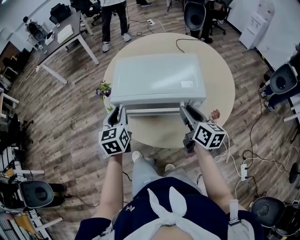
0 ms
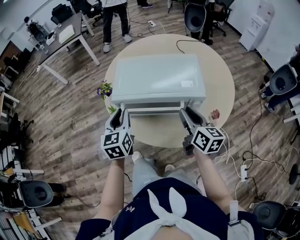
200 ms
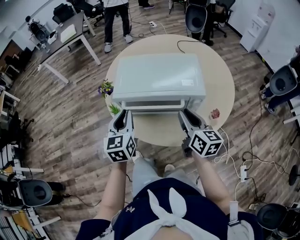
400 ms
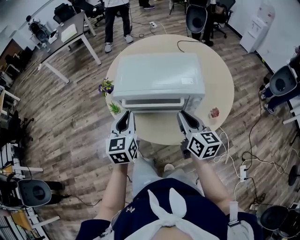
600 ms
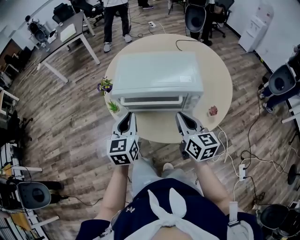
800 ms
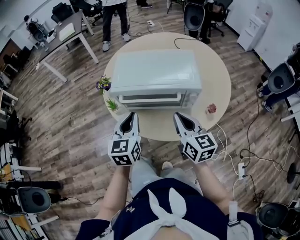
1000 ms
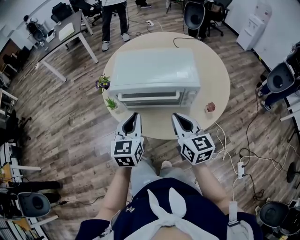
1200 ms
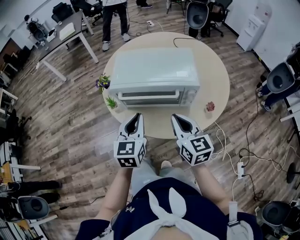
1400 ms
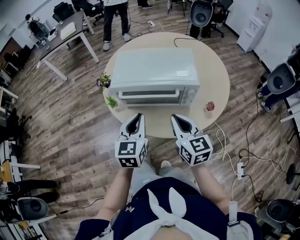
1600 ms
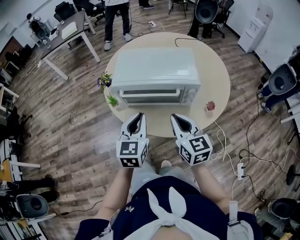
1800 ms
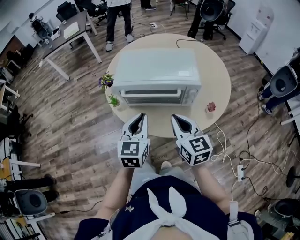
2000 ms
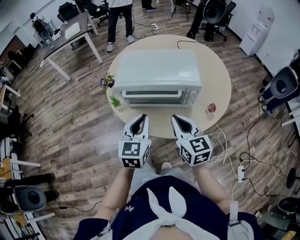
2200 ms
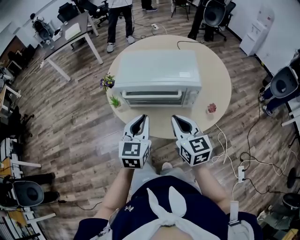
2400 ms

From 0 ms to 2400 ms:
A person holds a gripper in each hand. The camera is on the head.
From 0 ms to 1200 ms: The right gripper heads backward and to the left, covering roughly 10 cm, swivels some 20 degrees, and closes. Meanwhile the left gripper goes some 15 cm backward and to the right.
From 1200 ms to 2400 ms: The grippers stay close to where they were, moving slightly.

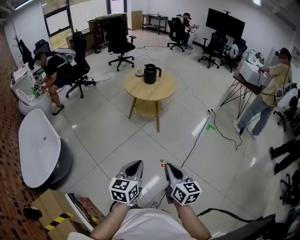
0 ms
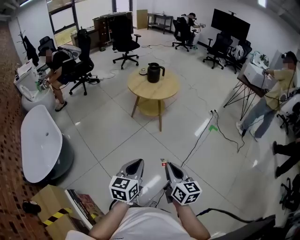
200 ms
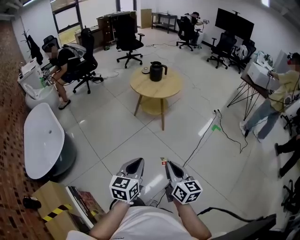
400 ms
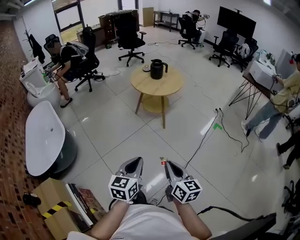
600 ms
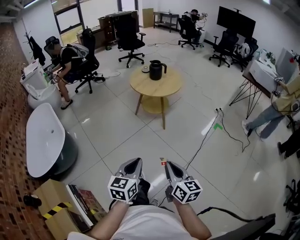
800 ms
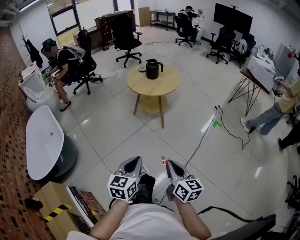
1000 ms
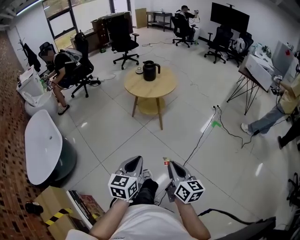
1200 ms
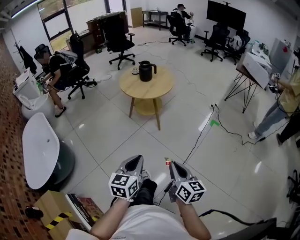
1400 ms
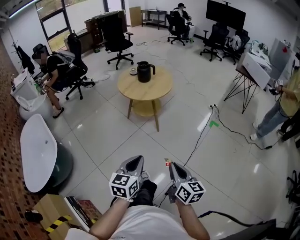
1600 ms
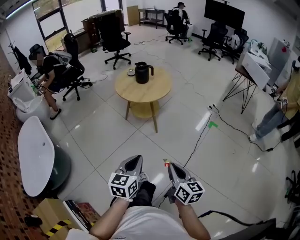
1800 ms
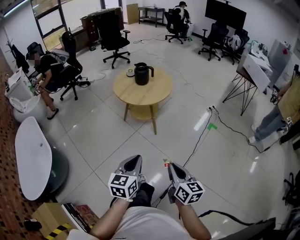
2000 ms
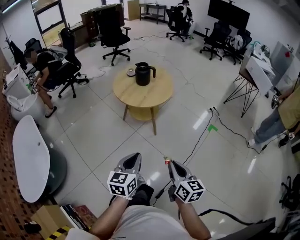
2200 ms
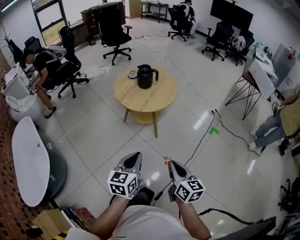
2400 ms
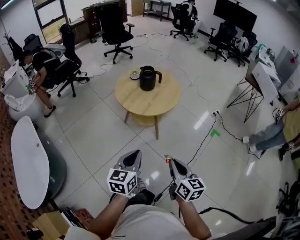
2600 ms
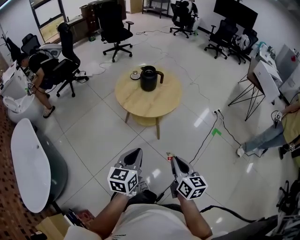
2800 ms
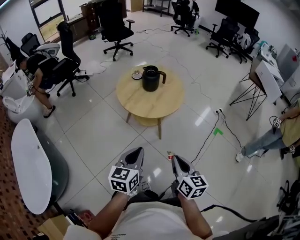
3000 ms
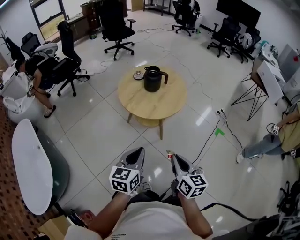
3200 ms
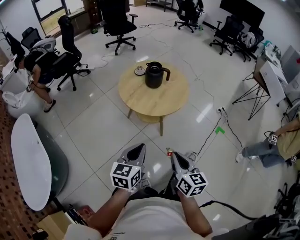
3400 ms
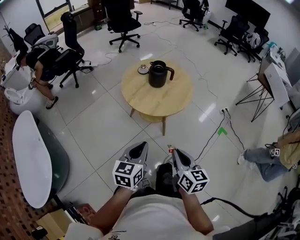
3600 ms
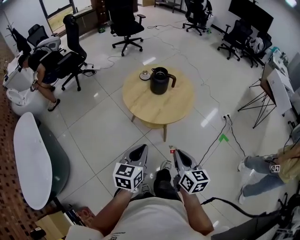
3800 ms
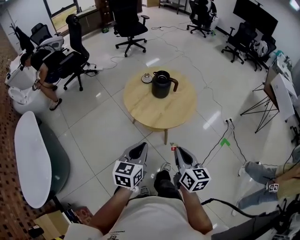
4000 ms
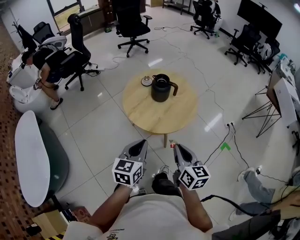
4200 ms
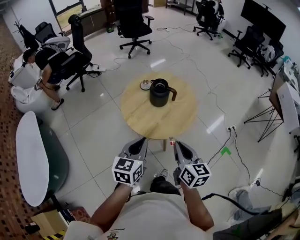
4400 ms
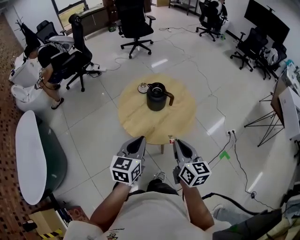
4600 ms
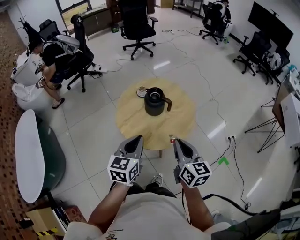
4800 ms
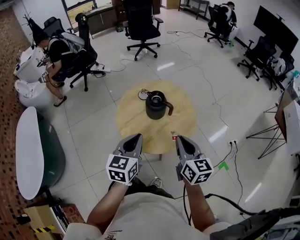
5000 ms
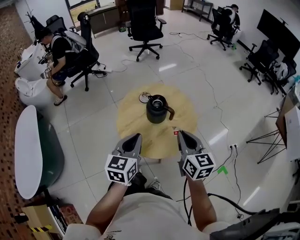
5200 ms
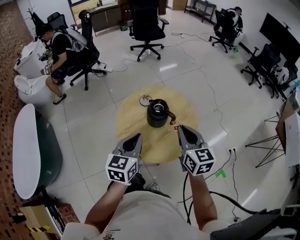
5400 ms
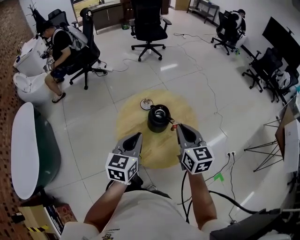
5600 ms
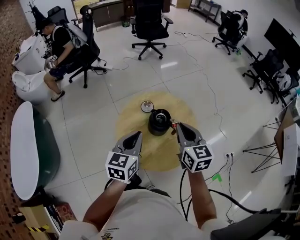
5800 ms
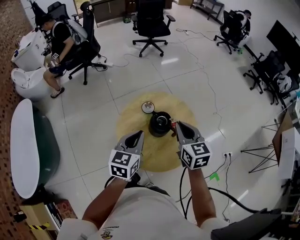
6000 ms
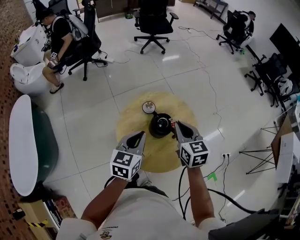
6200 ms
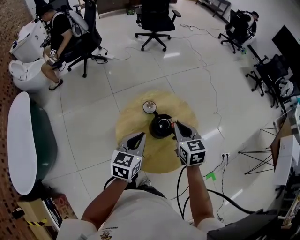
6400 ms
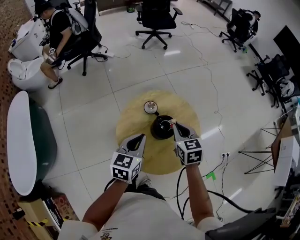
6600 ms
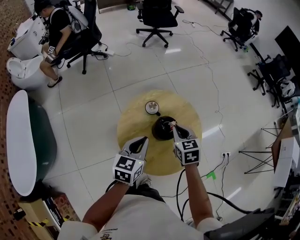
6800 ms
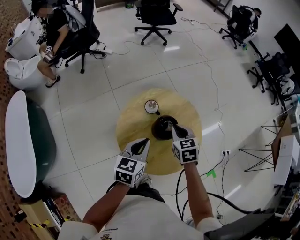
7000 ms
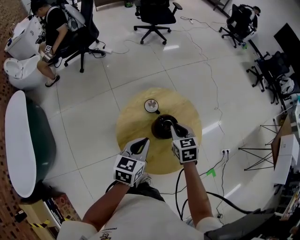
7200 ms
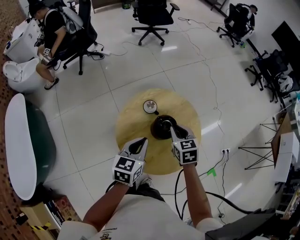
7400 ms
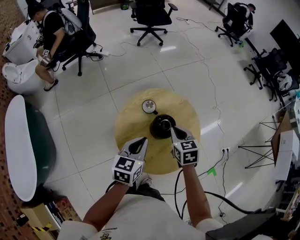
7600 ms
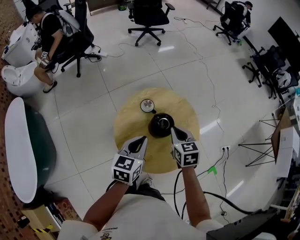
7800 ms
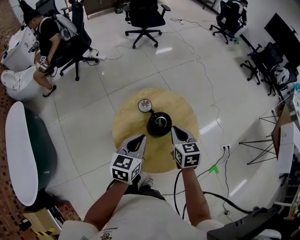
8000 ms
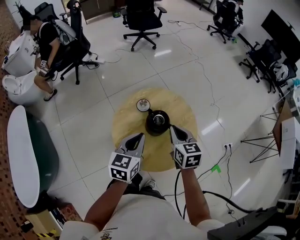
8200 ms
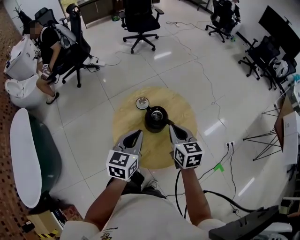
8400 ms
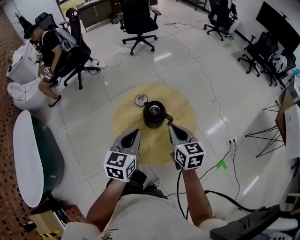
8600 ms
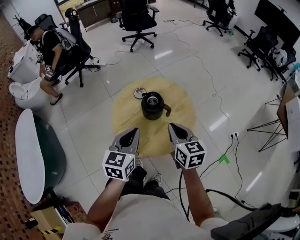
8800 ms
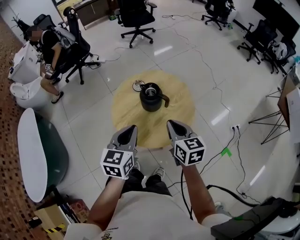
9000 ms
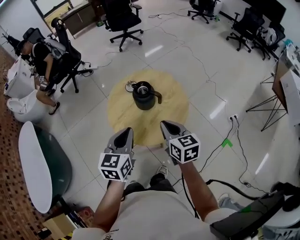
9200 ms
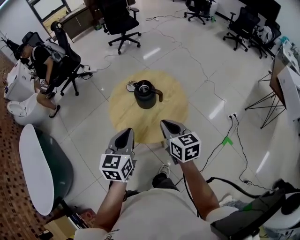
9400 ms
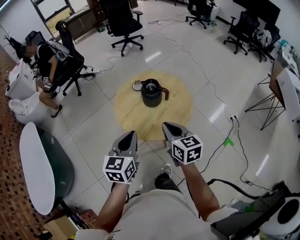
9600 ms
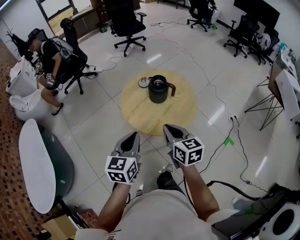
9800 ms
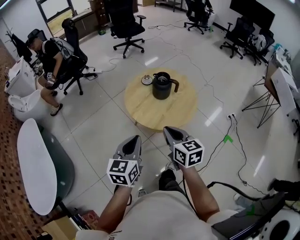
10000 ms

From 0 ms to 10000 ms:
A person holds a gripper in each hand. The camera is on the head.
From 0 ms to 1400 ms: Both grippers move to the right, roughly 10 cm.
From 1400 ms to 2800 ms: Both grippers travel together forward, roughly 30 cm.
From 2800 ms to 4200 ms: Both grippers travel together forward, approximately 20 cm.
From 4200 ms to 5800 ms: The two grippers go roughly 30 cm forward. The right gripper rotates roughly 20 degrees.
From 5800 ms to 7200 ms: The right gripper is displaced downward and forward by approximately 15 cm, and rotates approximately 30 degrees. Meanwhile the left gripper travels downward by approximately 5 cm.
From 7200 ms to 8600 ms: The right gripper is displaced backward and upward by approximately 15 cm, and turns by approximately 20 degrees. Meanwhile the left gripper travels backward and upward by approximately 5 cm.
From 8600 ms to 10000 ms: The grippers both shift backward and to the left by approximately 25 cm.

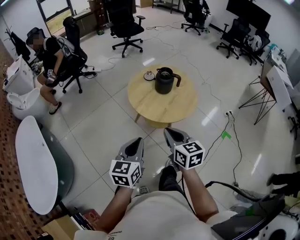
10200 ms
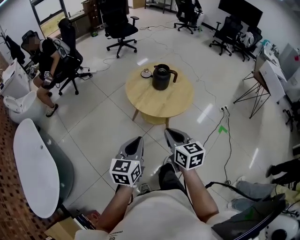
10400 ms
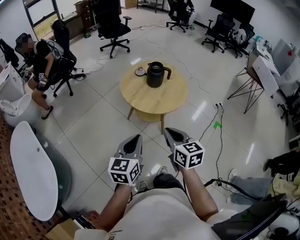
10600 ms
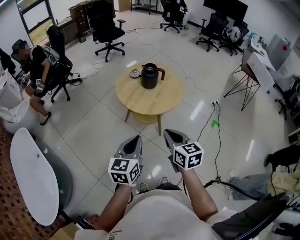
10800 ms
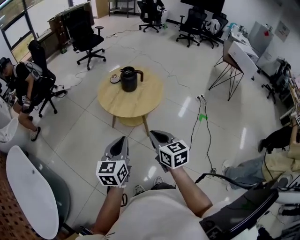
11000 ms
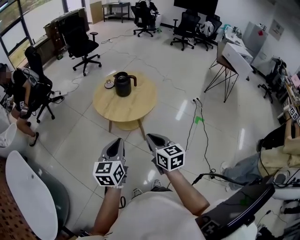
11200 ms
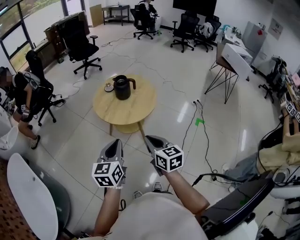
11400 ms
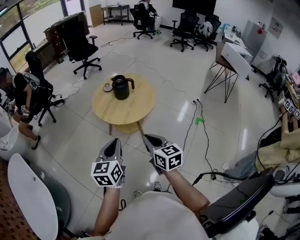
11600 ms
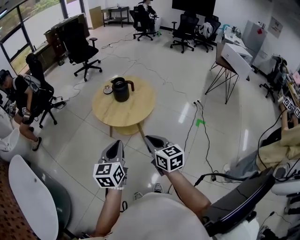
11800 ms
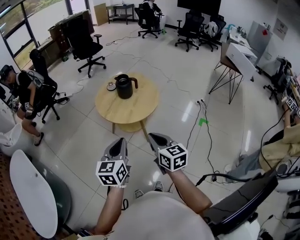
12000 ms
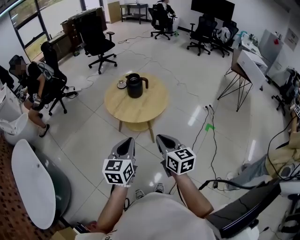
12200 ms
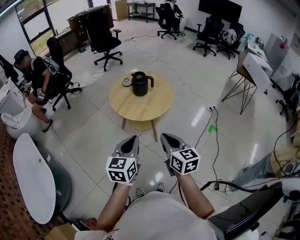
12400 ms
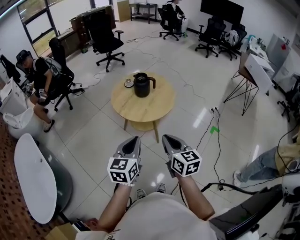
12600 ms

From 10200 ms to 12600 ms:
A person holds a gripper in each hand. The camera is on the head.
From 10200 ms to 11400 ms: The right gripper moves backward and to the right, about 10 cm. Meanwhile the left gripper is displaced to the right and backward by about 5 cm.
From 11400 ms to 12600 ms: The grippers stay close to where they were, moving slightly.

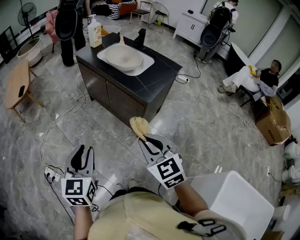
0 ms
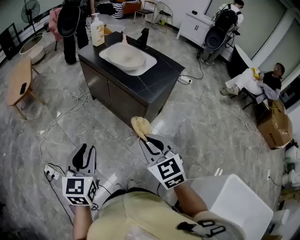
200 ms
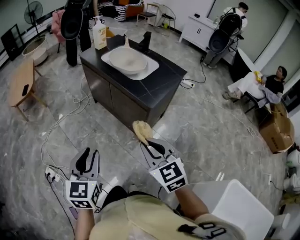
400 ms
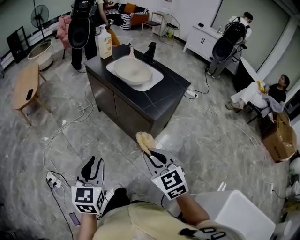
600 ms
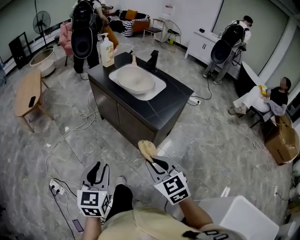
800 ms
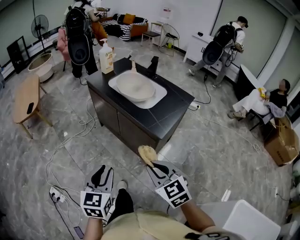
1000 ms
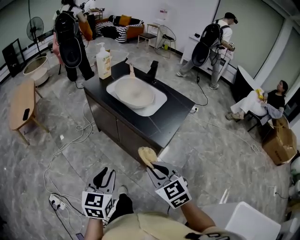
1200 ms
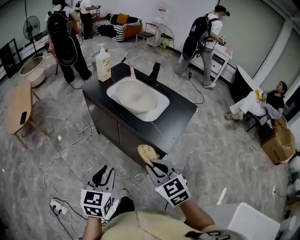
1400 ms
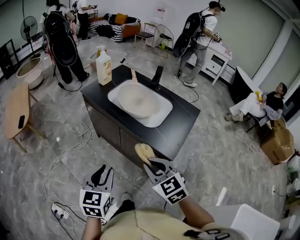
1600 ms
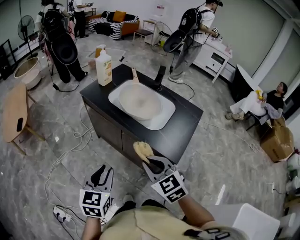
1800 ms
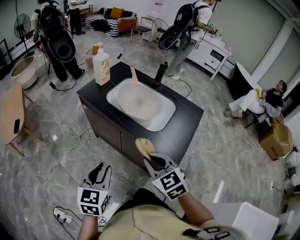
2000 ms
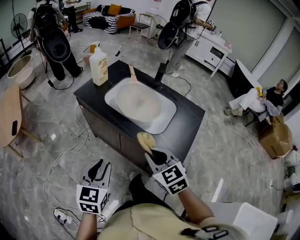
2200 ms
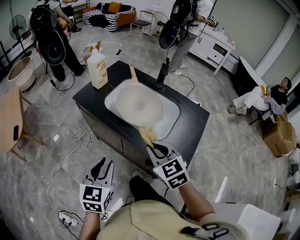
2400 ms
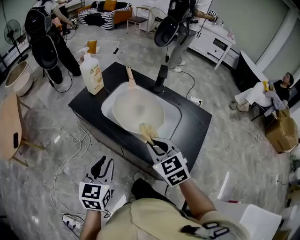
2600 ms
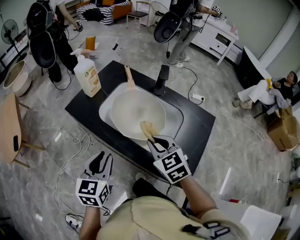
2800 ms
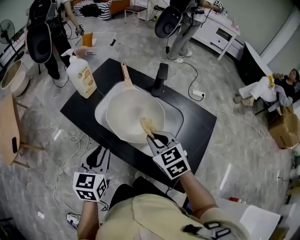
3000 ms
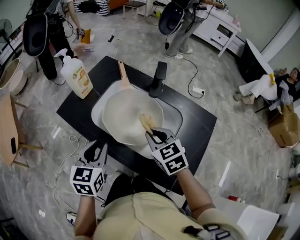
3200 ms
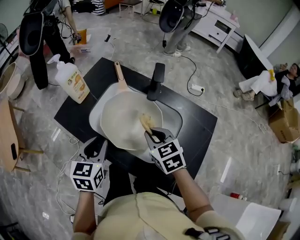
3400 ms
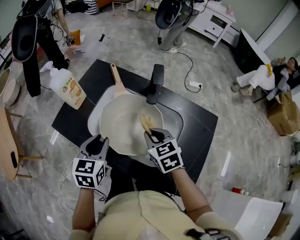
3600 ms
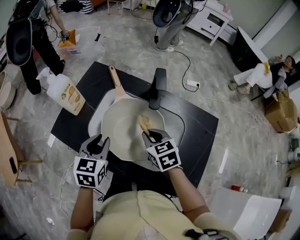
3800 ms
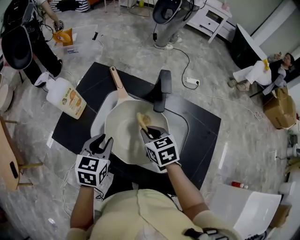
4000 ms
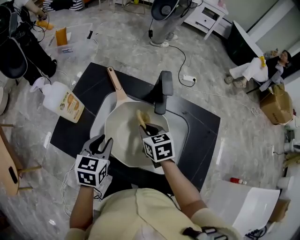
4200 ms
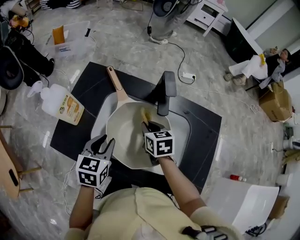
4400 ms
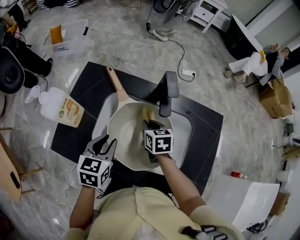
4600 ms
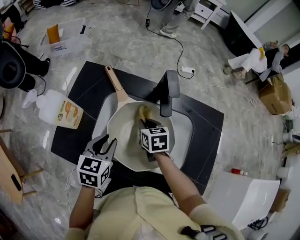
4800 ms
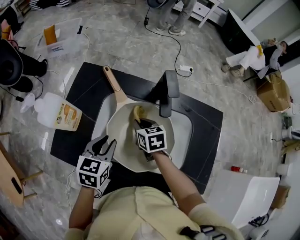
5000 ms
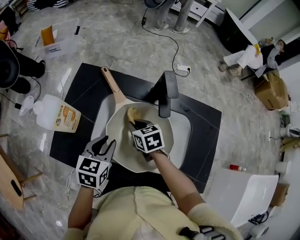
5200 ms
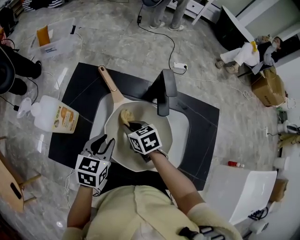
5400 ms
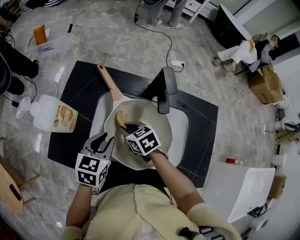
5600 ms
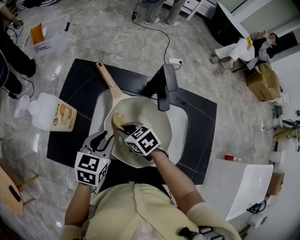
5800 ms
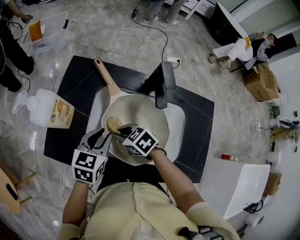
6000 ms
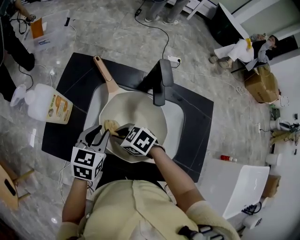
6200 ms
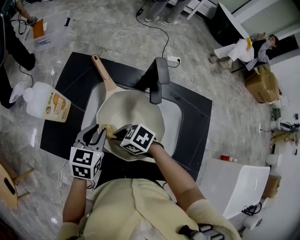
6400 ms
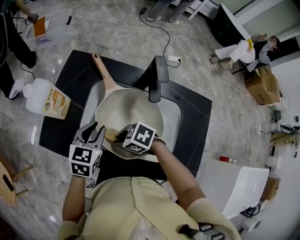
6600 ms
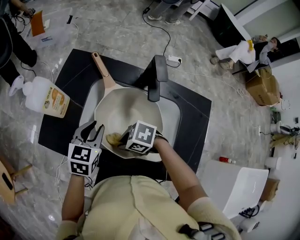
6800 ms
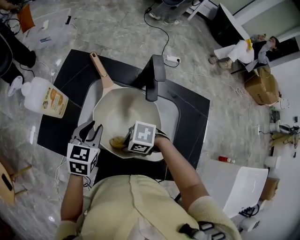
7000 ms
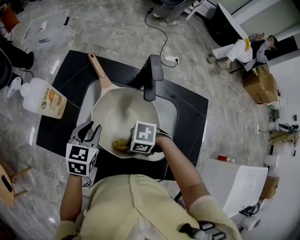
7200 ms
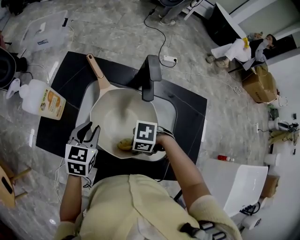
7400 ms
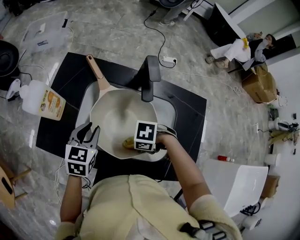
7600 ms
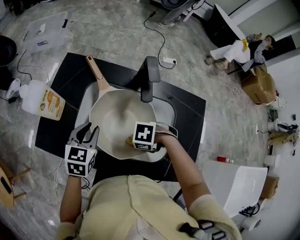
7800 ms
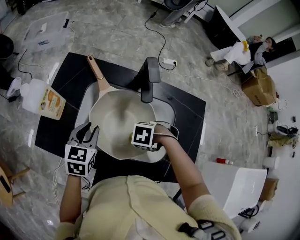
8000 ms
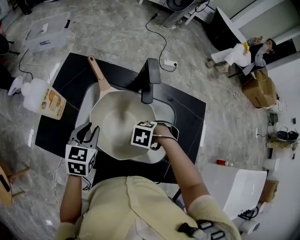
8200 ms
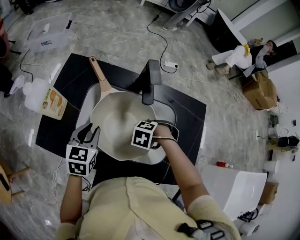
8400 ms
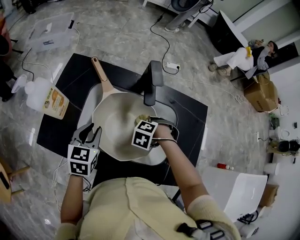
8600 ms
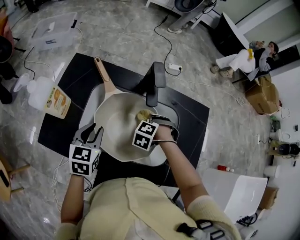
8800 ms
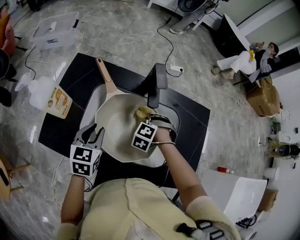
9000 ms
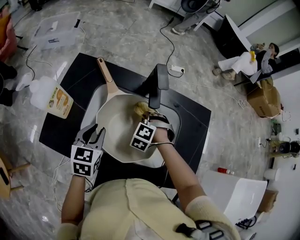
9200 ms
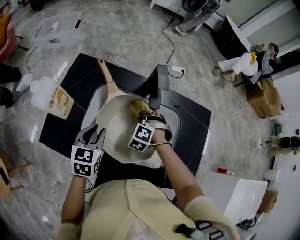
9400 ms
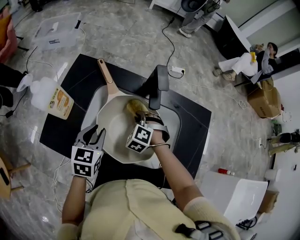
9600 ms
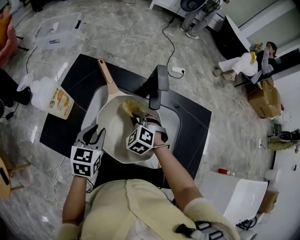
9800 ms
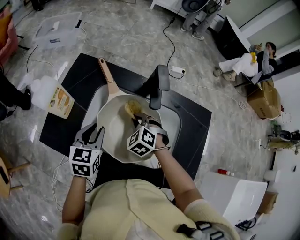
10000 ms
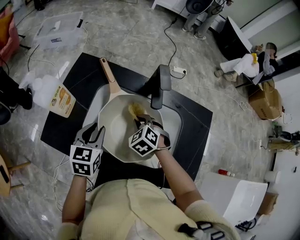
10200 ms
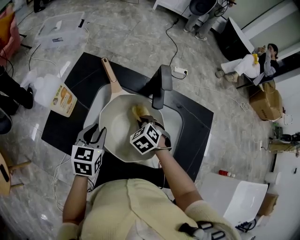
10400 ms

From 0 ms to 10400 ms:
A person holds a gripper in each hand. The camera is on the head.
From 0 ms to 1400 ms: Both grippers travel together forward, roughly 20 cm.
From 1400 ms to 3000 ms: Both grippers move forward, about 40 cm.
From 3000 ms to 4400 ms: The left gripper heads forward, covering some 20 cm, and swivels about 20 degrees, while the right gripper travels forward and downward by approximately 25 cm, and changes its angle by roughly 40 degrees.
From 4400 ms to 6000 ms: The right gripper moves to the left and backward, roughly 15 cm, and rotates approximately 40 degrees.
From 6000 ms to 7400 ms: The right gripper shifts by approximately 15 cm, and swivels approximately 40 degrees.
From 7400 ms to 9000 ms: The right gripper moves some 20 cm, and rotates roughly 60 degrees.
From 9000 ms to 10400 ms: The right gripper travels to the left by approximately 5 cm, and swivels roughly 30 degrees.
